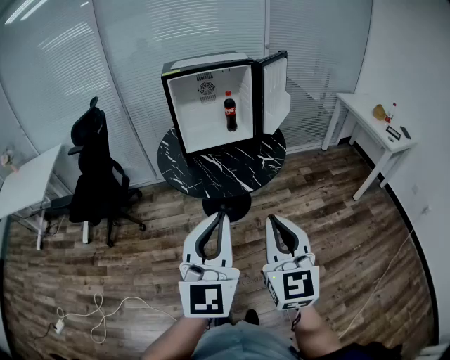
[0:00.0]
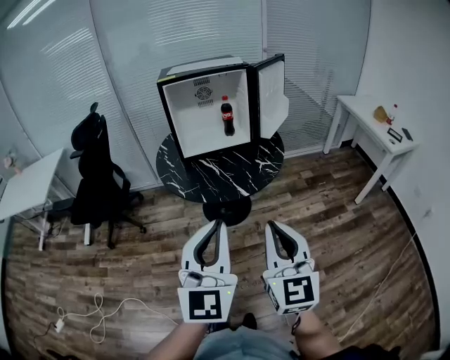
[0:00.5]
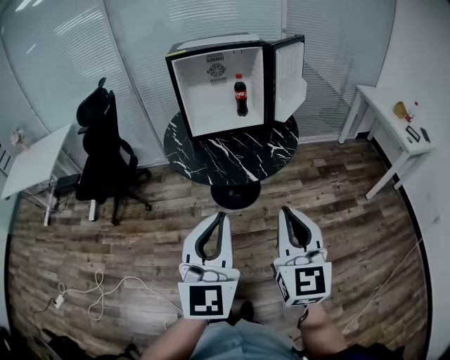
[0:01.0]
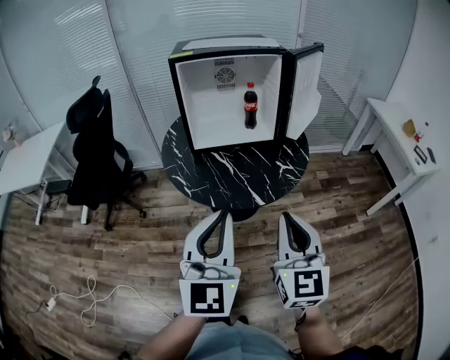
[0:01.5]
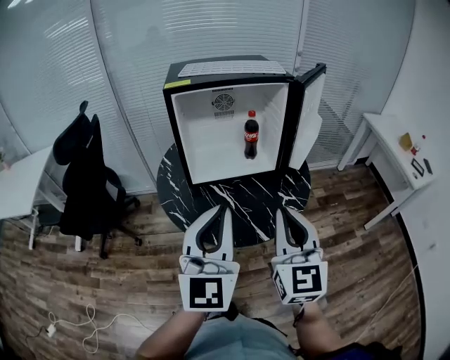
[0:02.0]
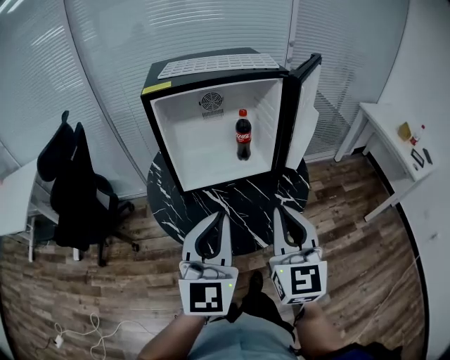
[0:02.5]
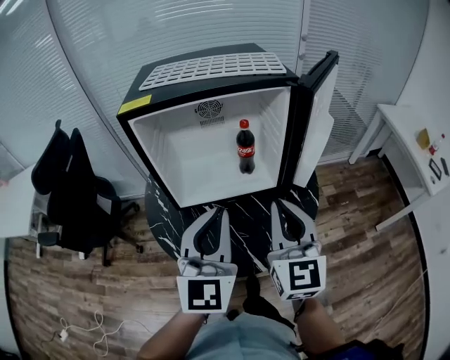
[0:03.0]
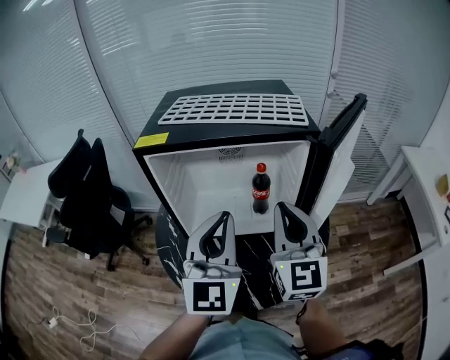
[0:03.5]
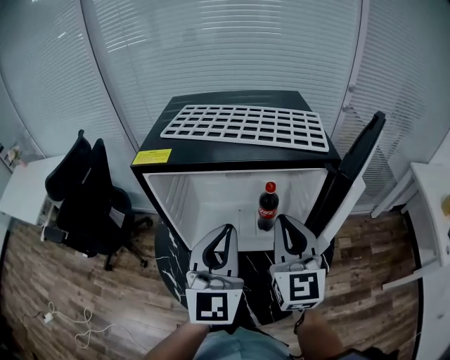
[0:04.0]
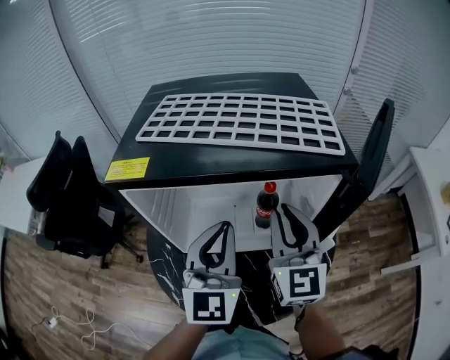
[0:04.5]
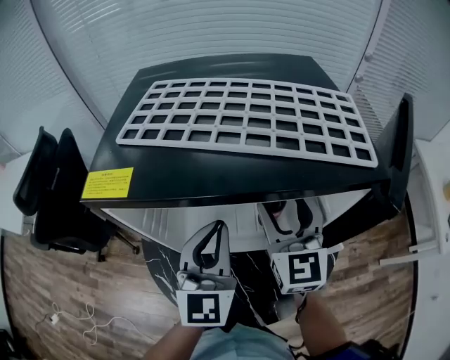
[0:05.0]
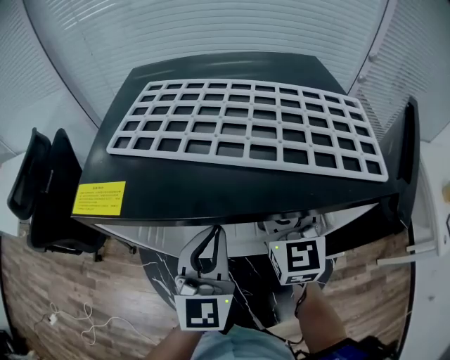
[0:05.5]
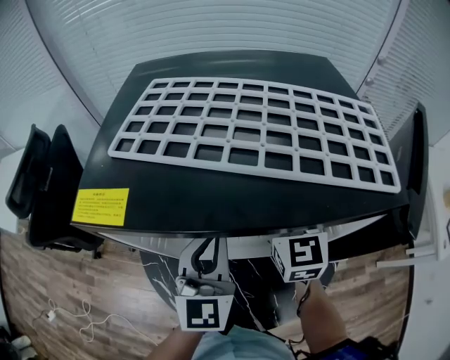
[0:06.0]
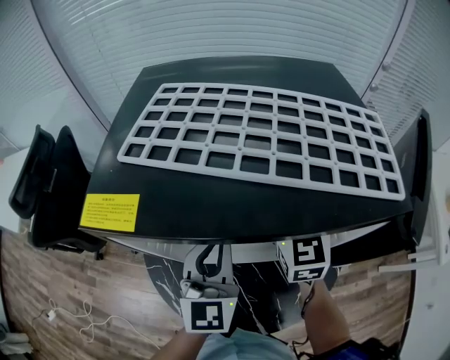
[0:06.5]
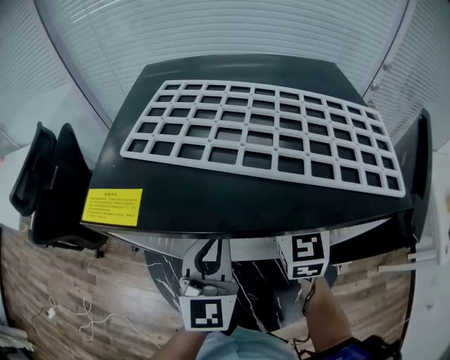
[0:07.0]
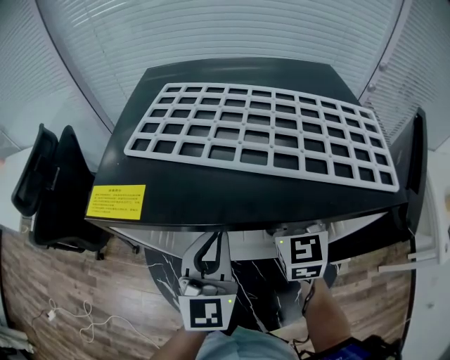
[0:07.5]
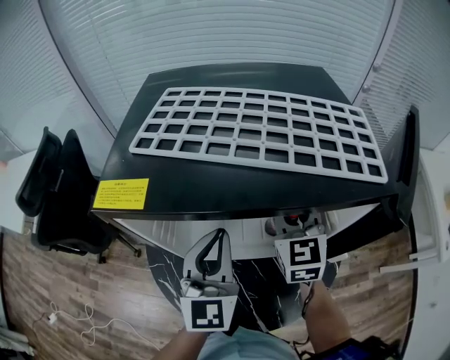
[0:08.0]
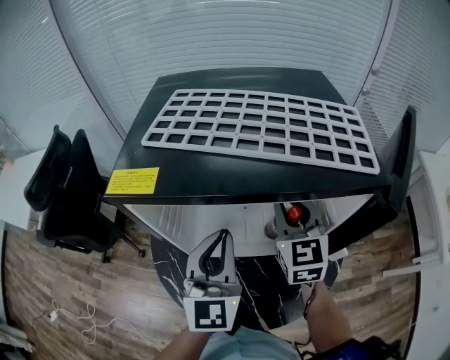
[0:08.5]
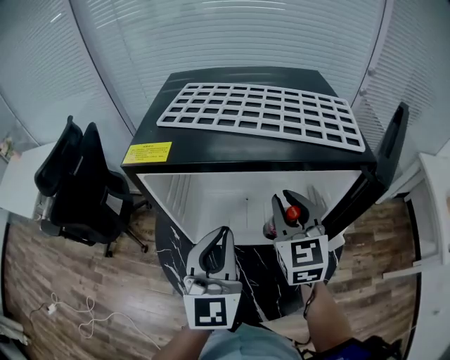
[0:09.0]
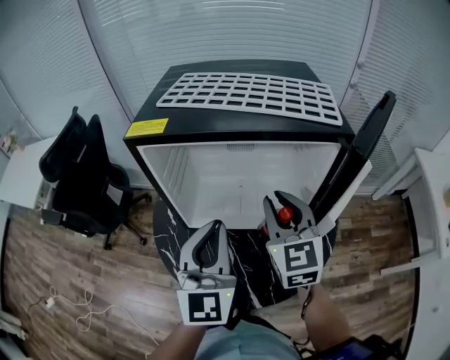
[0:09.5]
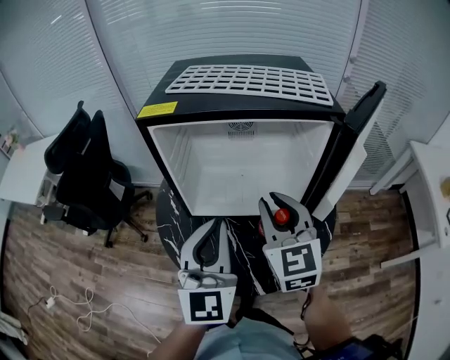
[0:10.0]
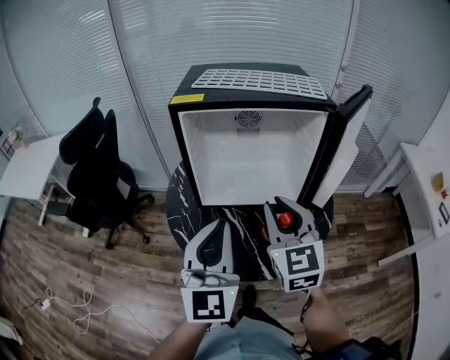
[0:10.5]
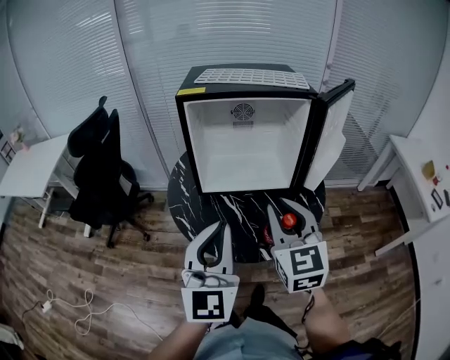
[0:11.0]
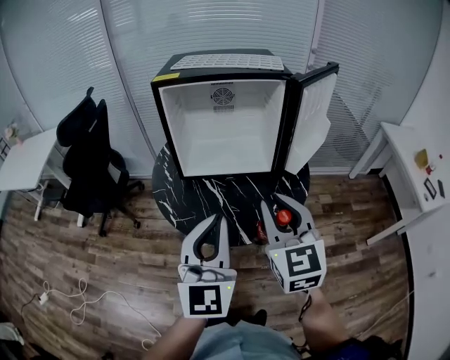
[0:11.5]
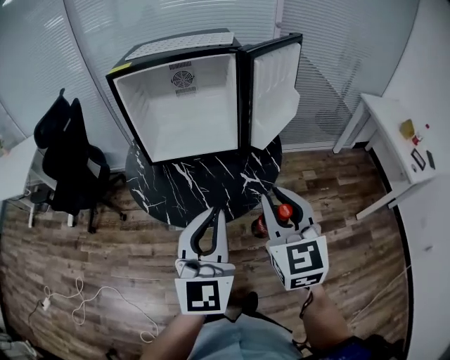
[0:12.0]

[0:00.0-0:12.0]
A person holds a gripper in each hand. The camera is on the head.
0:00.0 to 0:02.0: The grippers both shift forward by about 35 cm.
0:02.0 to 0:04.0: The grippers both shift forward by roughly 40 cm.
0:04.0 to 0:06.0: The grippers both shift forward and downward by some 25 cm. The right gripper opens up.
0:06.0 to 0:08.0: Both grippers travel together backward, approximately 5 cm. The right gripper closes.
0:08.0 to 0:10.0: The two grippers go roughly 25 cm backward.
0:10.0 to 0:12.0: The grippers both shift backward and to the right by some 35 cm.

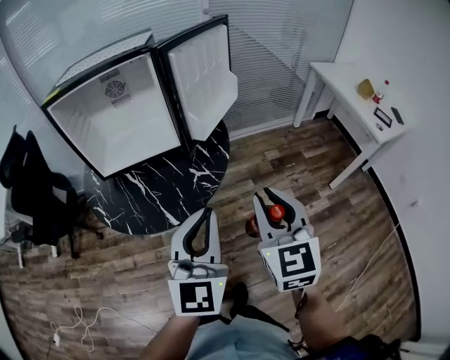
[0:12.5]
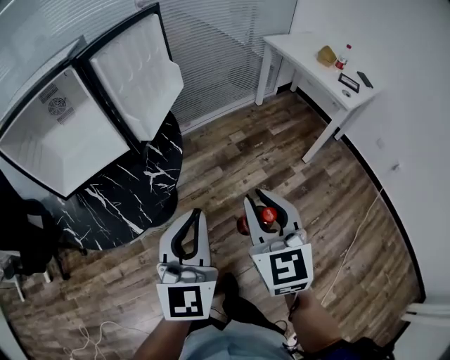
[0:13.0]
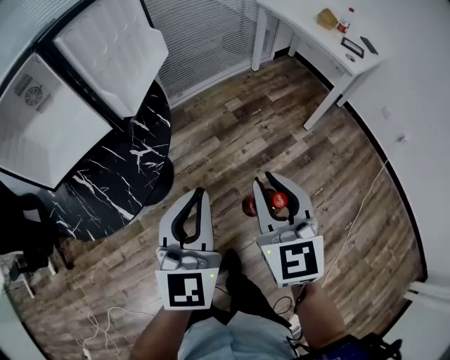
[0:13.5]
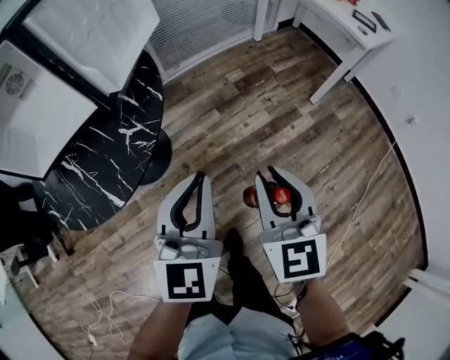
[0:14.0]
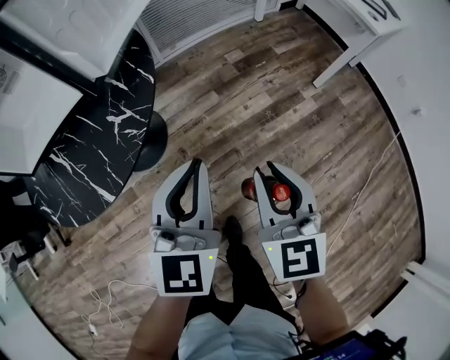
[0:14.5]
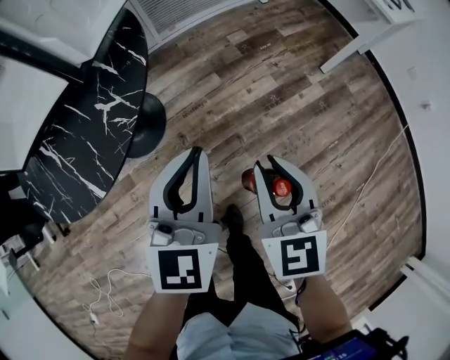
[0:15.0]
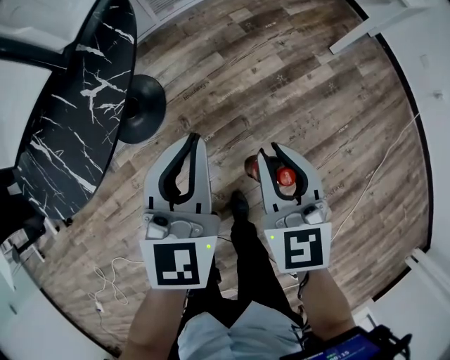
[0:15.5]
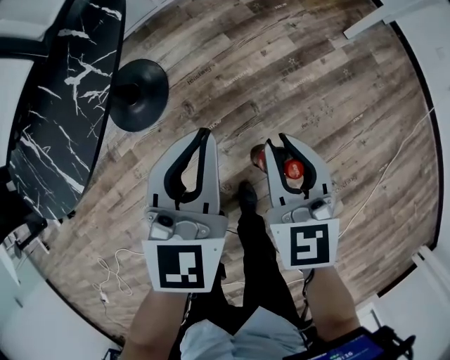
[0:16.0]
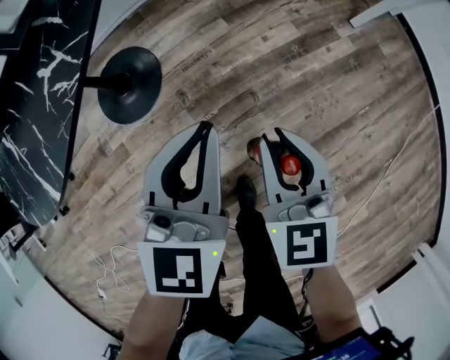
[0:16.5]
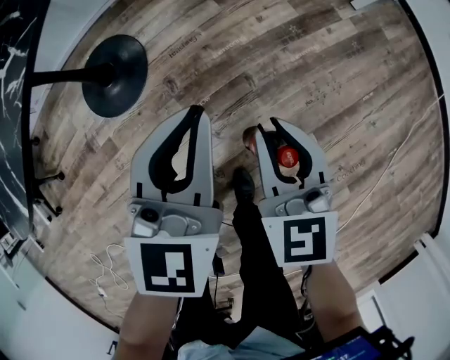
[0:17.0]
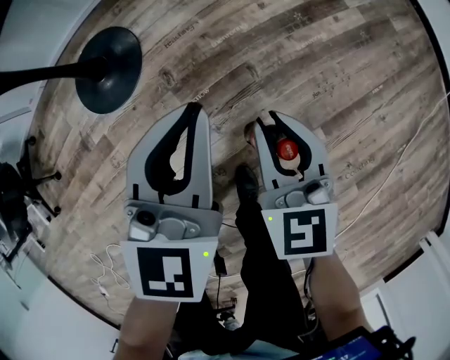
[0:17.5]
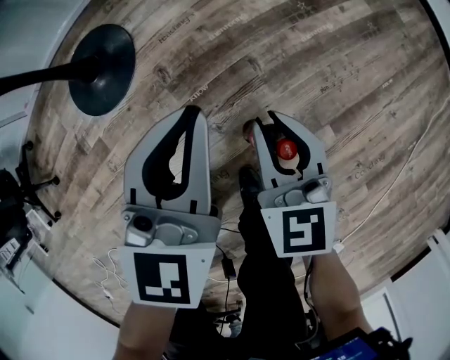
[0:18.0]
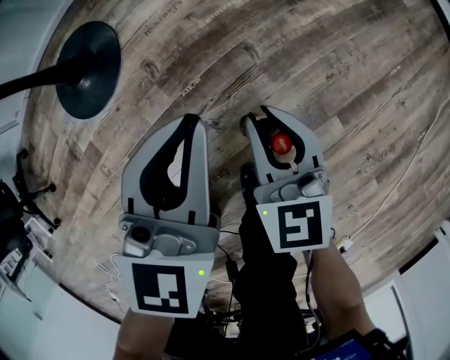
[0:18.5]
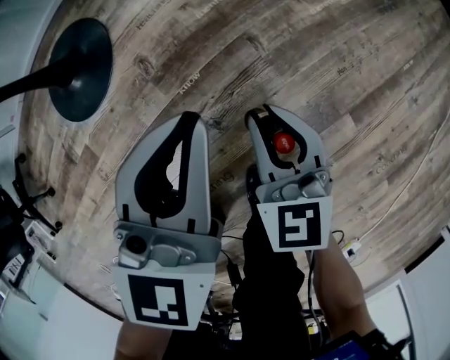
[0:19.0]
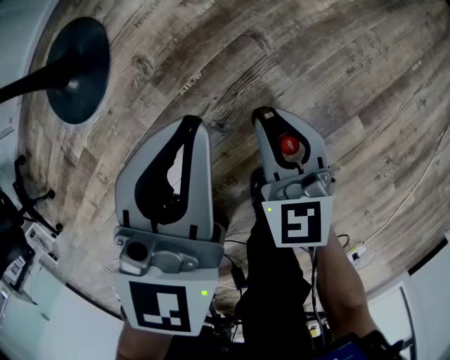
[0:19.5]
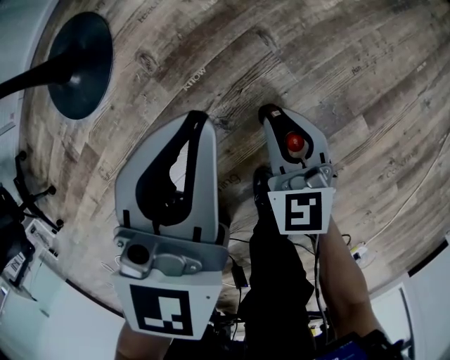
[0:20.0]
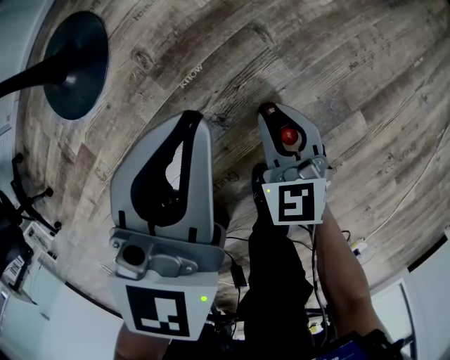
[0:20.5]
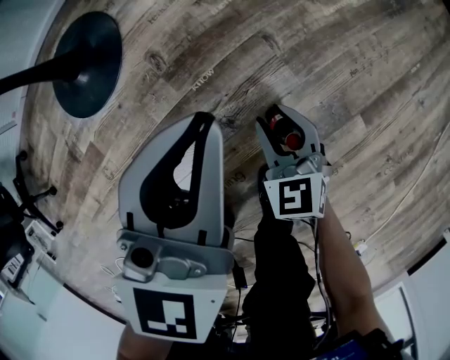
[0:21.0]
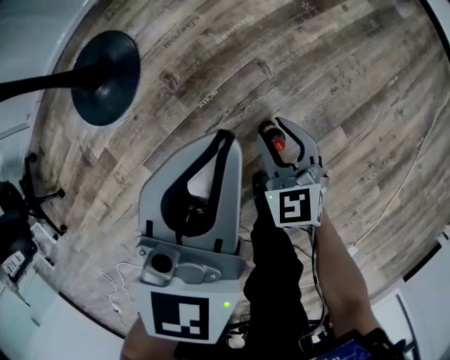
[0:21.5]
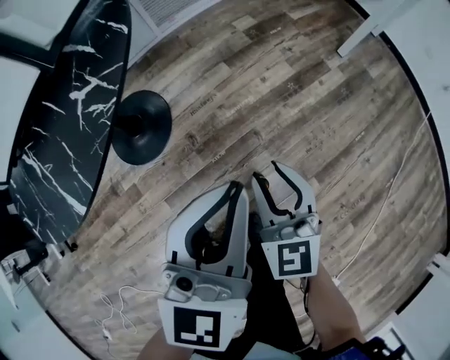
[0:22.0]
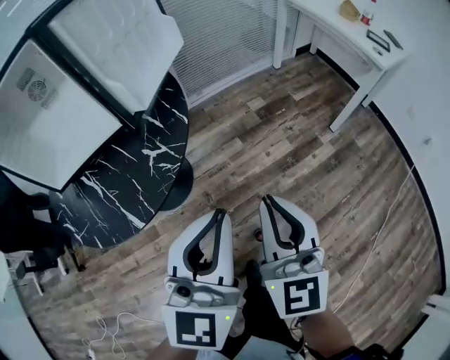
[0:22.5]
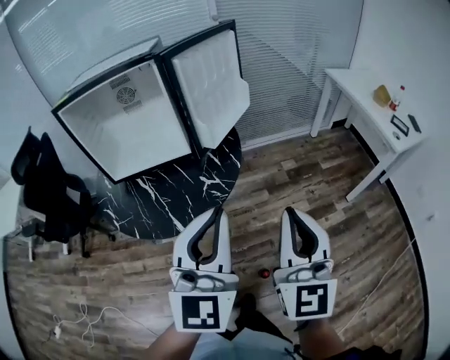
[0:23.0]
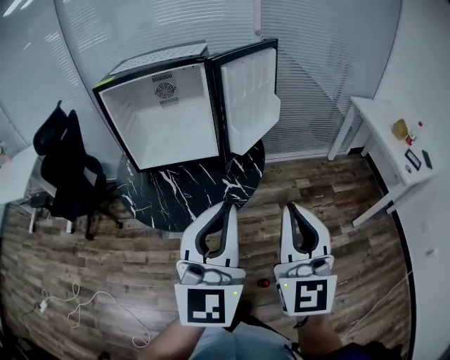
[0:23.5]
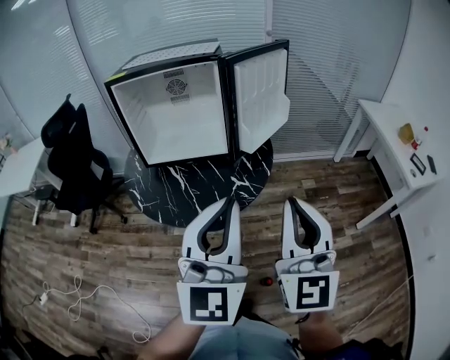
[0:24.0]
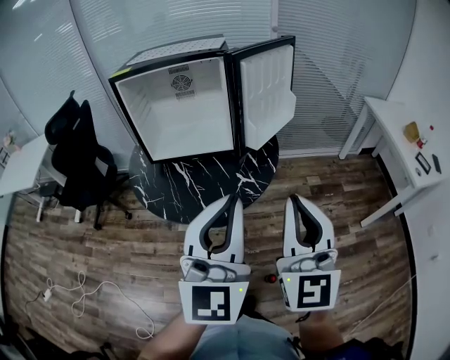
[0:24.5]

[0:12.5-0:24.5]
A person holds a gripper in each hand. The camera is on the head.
0:12.5 to 0:14.5: The left gripper is displaced downward, to the right and forward by about 30 cm, and turns by roughly 20 degrees. The right gripper shifts roughly 30 cm downward and to the right.
0:14.5 to 0:16.5: Both grippers travel together downward, about 25 cm.
0:16.5 to 0:18.5: The two grippers go approximately 30 cm downward.
0:18.5 to 0:20.5: The right gripper goes approximately 15 cm downward. The left gripper travels downward by some 10 cm.
0:20.5 to 0:22.5: Both grippers move upward, roughly 70 cm. The right gripper tips its fingers upward by some 30 degrees; the left gripper changes its angle by approximately 30 degrees.
0:22.5 to 0:24.5: Both grippers travel together upward and to the left, roughly 30 cm. The right gripper rotates approximately 20 degrees, while the left gripper changes its angle by roughly 30 degrees.

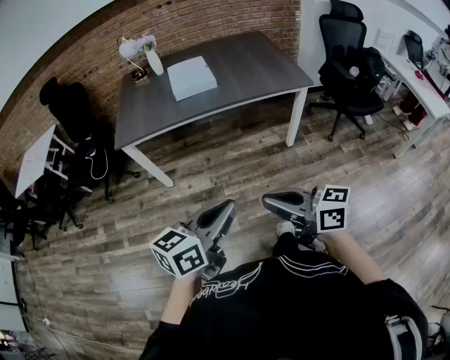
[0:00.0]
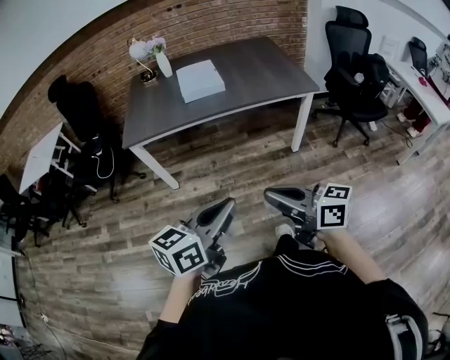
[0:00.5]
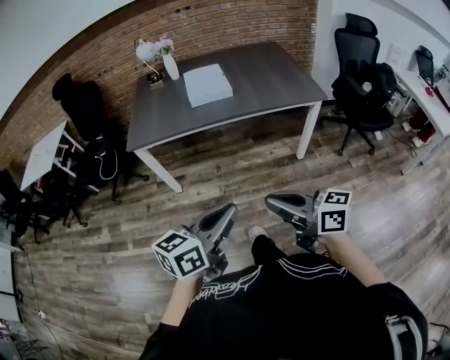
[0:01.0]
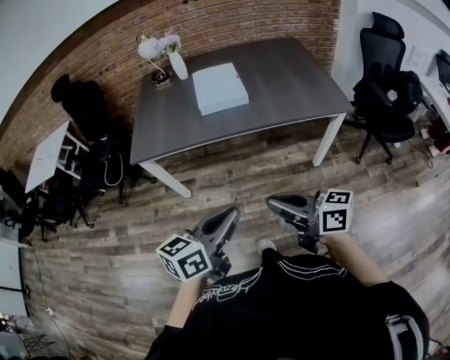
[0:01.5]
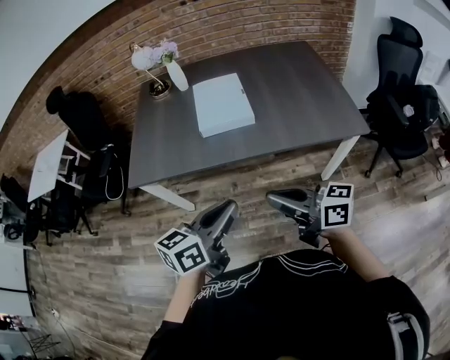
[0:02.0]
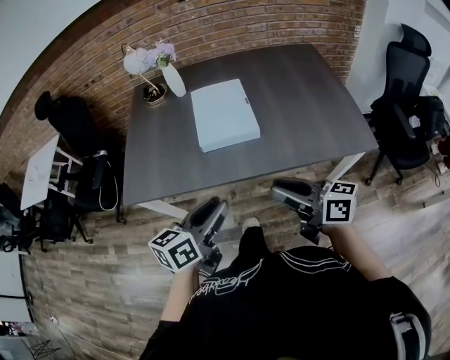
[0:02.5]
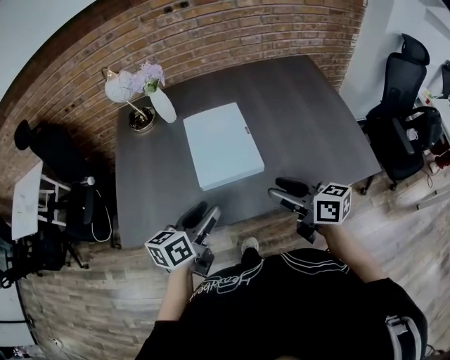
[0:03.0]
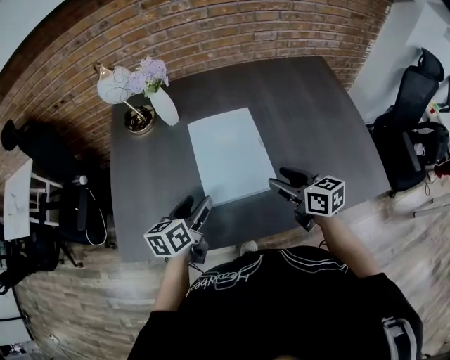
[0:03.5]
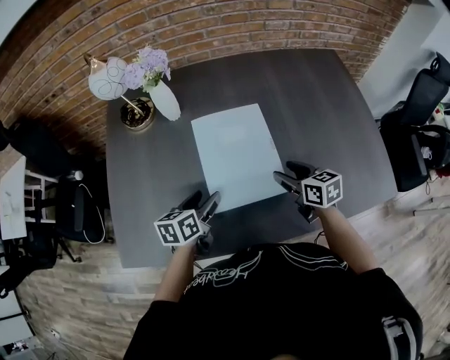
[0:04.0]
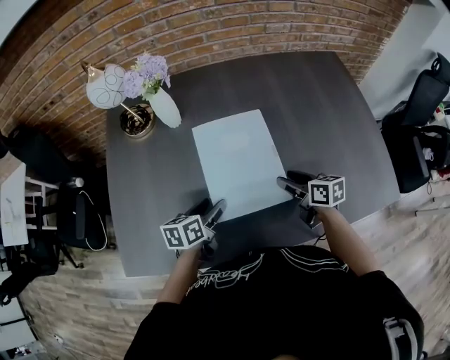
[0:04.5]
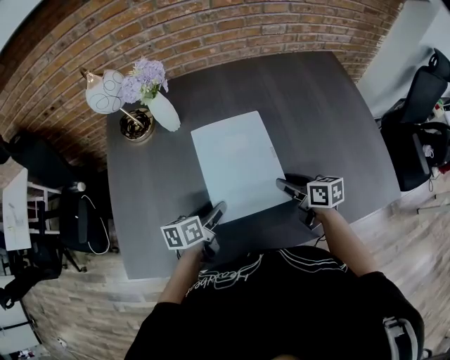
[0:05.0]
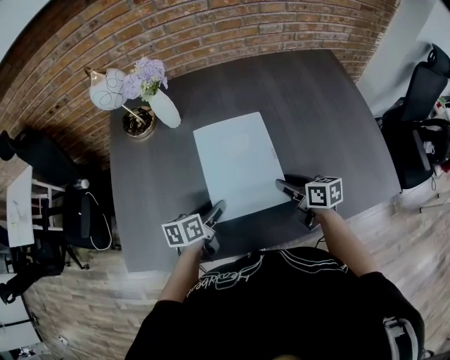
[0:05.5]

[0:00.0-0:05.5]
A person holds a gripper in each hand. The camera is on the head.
0:00.0 to 0:02.0: Both grippers move forward, about 35 cm.
0:02.0 to 0:03.5: The two grippers travel together, forward, roughly 40 cm. The right gripper swivels approximately 30 degrees, and opens its fingers, while the left gripper swivels roughly 20 degrees, and opens up.
0:03.5 to 0:05.5: Both grippers move downward, approximately 10 cm.
